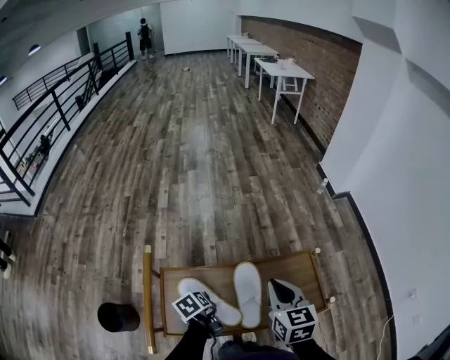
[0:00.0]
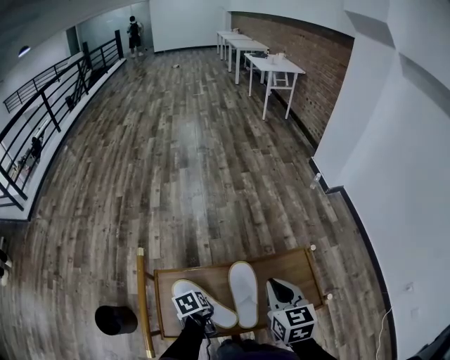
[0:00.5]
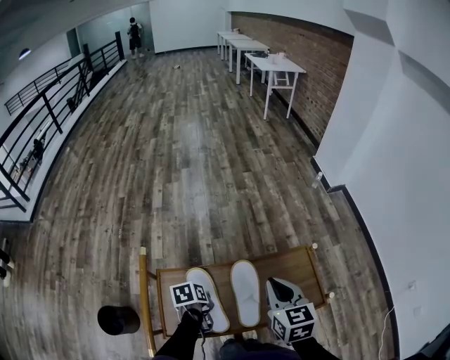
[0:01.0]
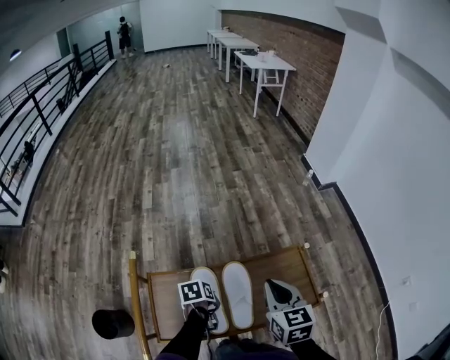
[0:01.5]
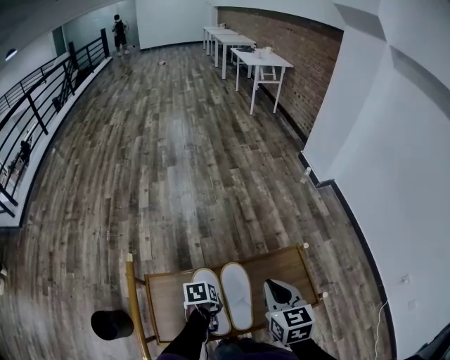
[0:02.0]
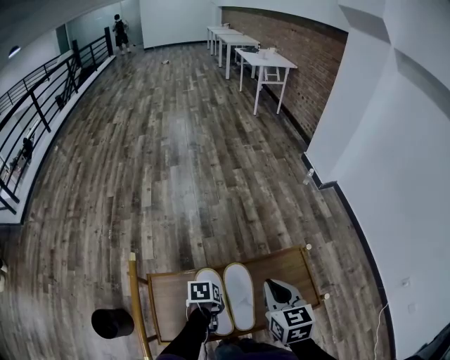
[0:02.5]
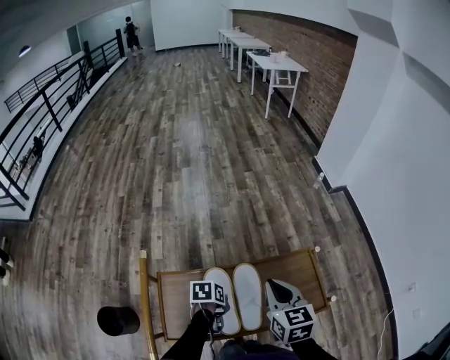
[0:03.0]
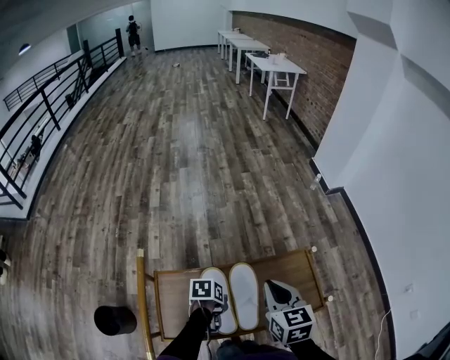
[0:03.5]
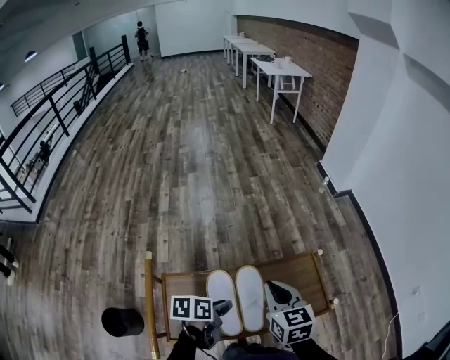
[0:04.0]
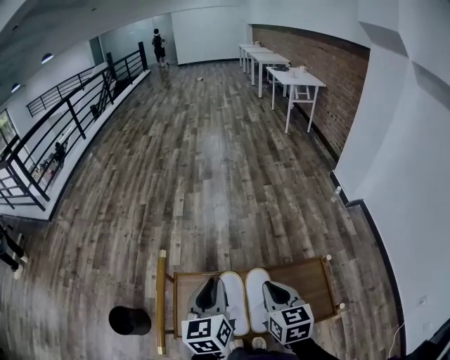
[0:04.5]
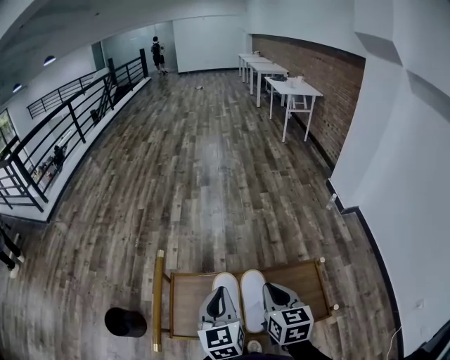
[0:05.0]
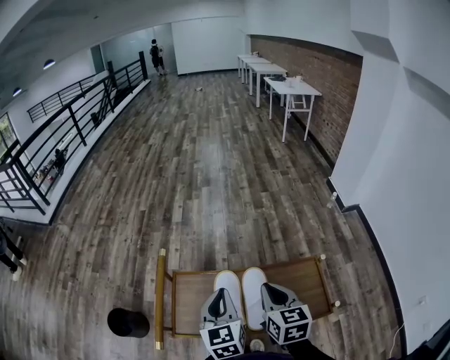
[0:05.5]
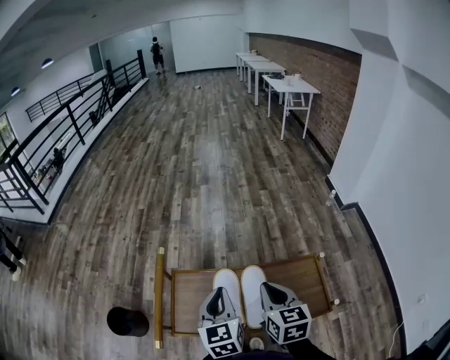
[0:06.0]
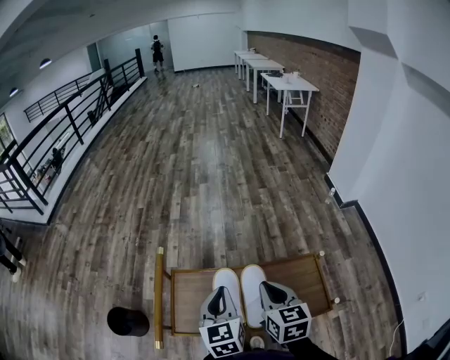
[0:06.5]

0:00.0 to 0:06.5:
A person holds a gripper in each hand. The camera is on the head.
0:00.0 to 0:02.0: The left gripper shifts by about 10 cm, rotates about 40 degrees, and closes.
0:02.0 to 0:04.5: The left gripper moves upward, roughly 25 cm, and tips its fingers upward by approximately 50 degrees. The right gripper shifts by about 5 cm.
0:04.5 to 0:06.5: The left gripper heads backward, covering approximately 5 cm.

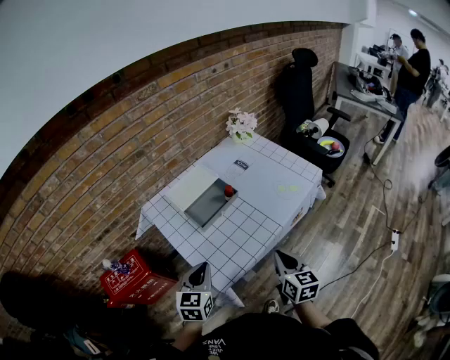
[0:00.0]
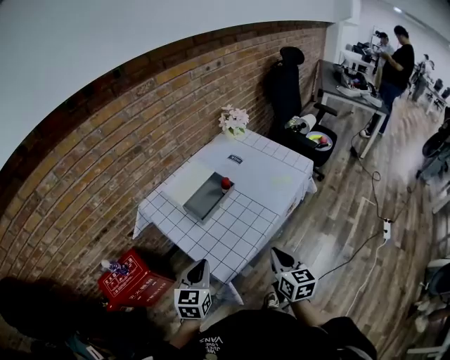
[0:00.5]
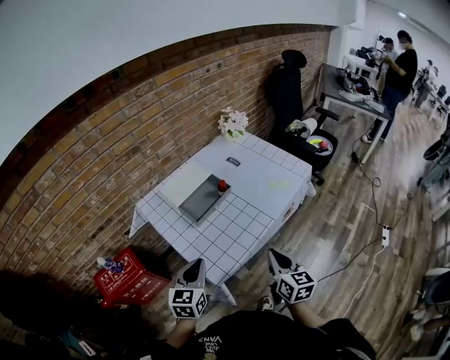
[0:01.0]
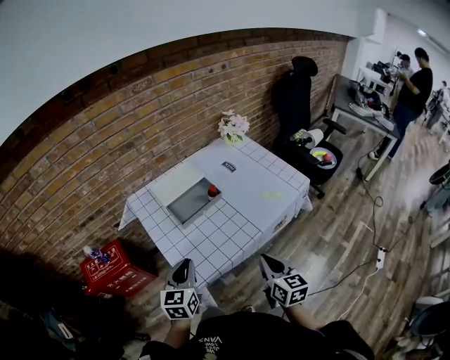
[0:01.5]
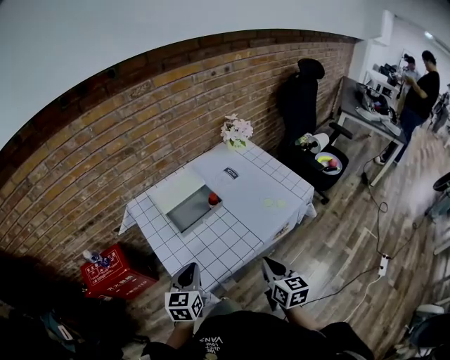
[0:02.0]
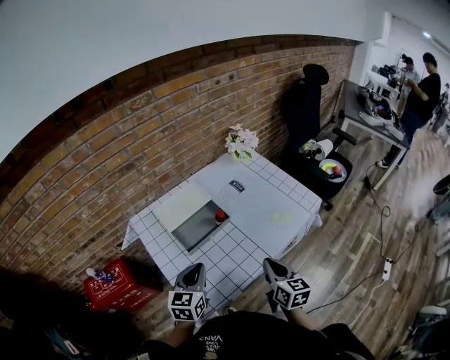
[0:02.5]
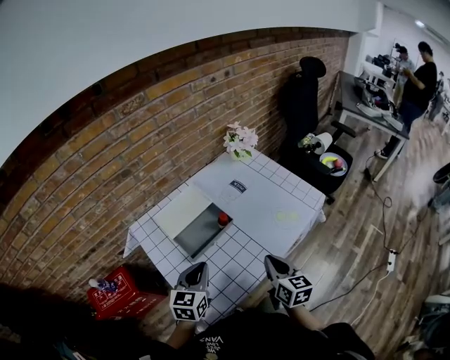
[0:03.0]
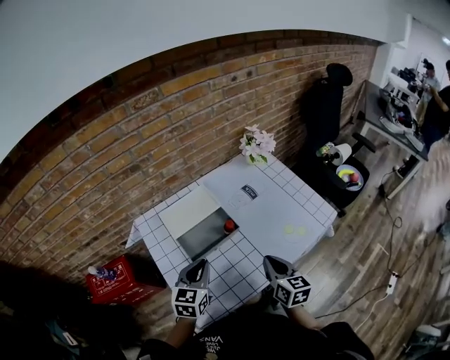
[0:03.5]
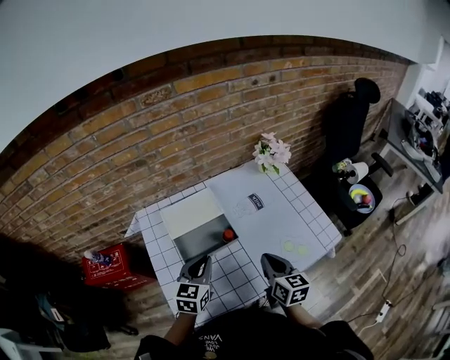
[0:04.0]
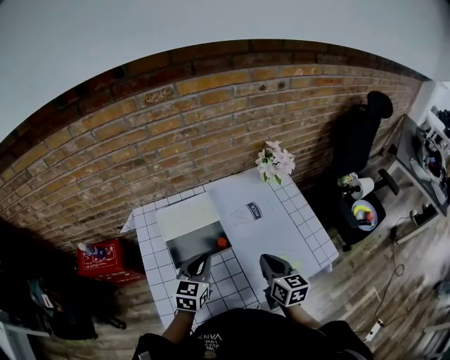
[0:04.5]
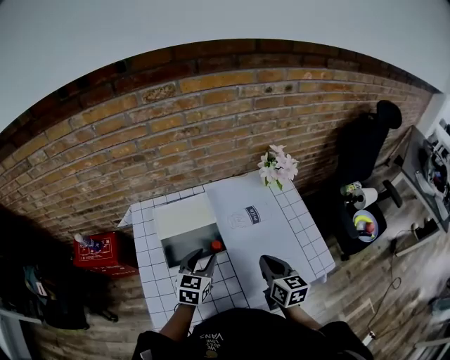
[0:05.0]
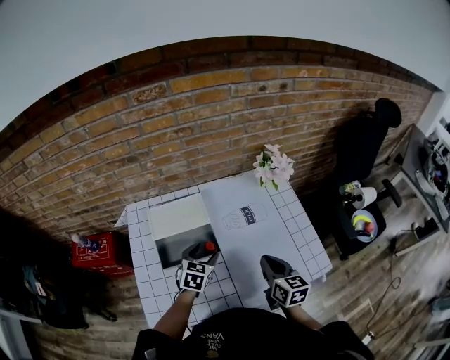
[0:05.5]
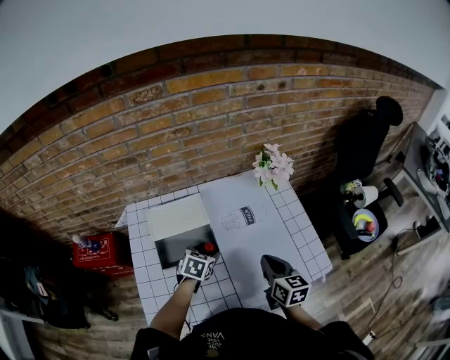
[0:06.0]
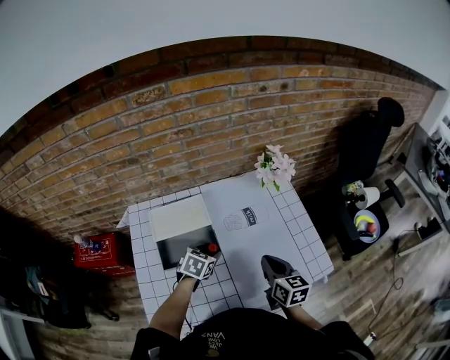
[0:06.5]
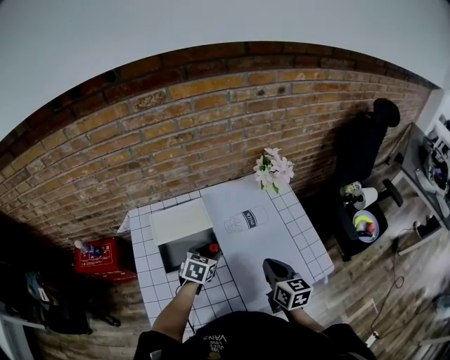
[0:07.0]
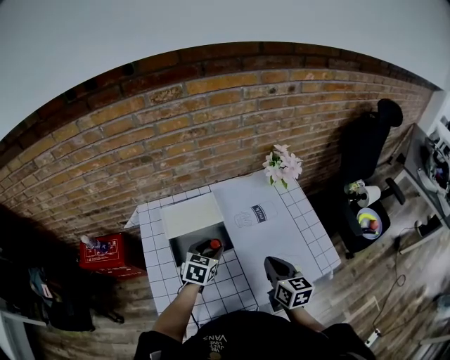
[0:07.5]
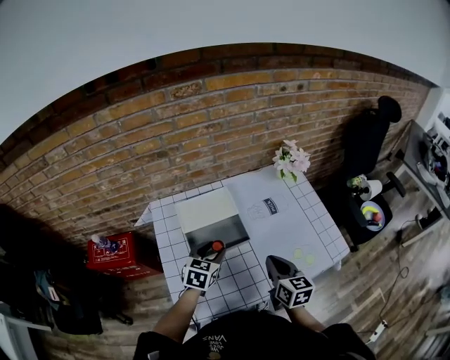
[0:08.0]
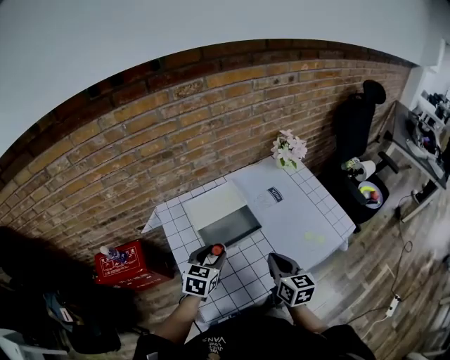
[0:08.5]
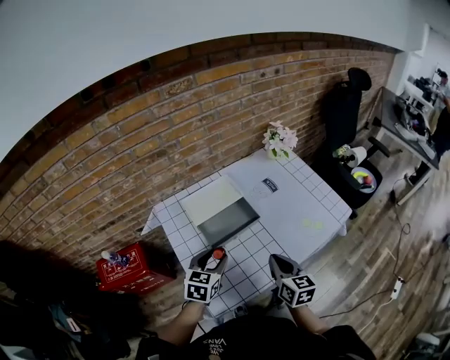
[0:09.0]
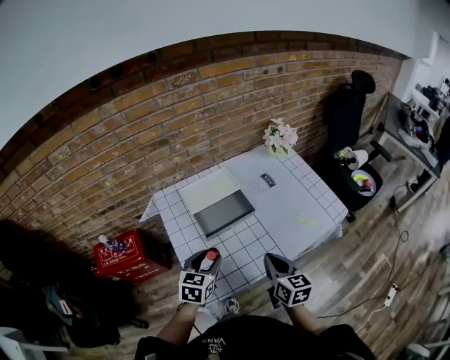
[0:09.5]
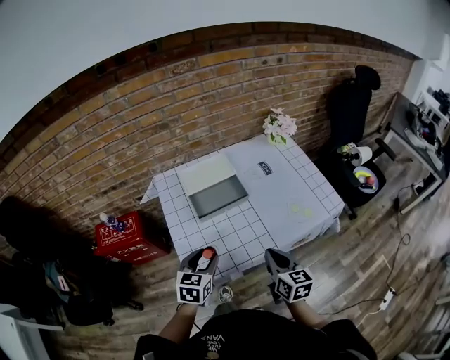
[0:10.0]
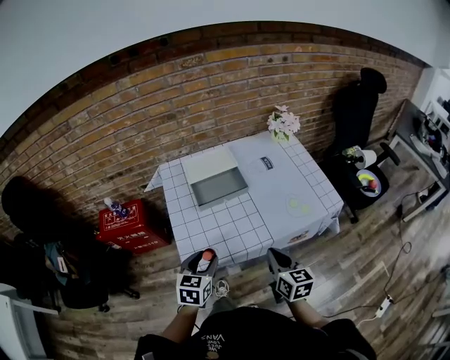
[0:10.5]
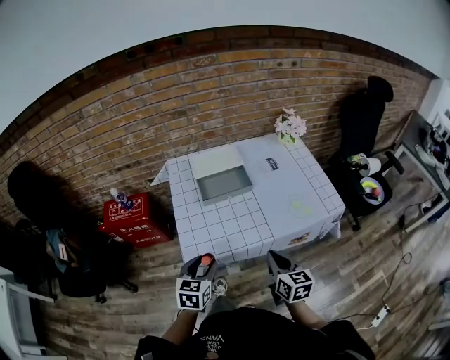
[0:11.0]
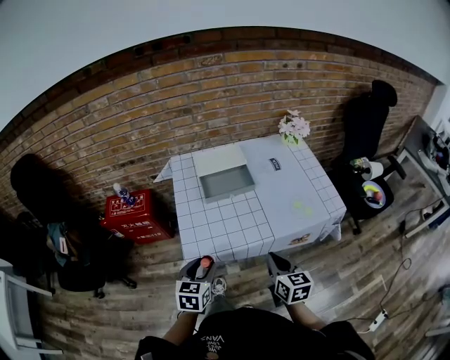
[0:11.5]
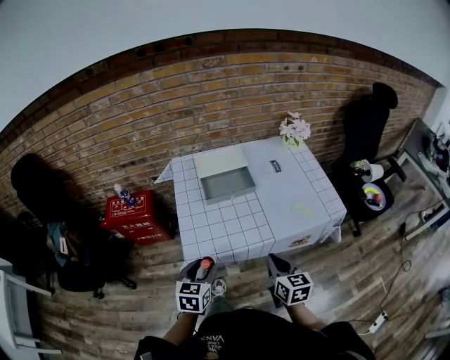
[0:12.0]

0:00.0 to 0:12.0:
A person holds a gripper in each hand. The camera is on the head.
0:00.0 to 0:02.0: The right gripper shifts by some 5 cm. The left gripper changes place by roughly 5 cm.
0:02.0 to 0:04.0: The two grippers go some 20 cm forward.
0:04.0 to 0:06.0: The left gripper is displaced downward, forward and to the right by approximately 20 cm, rotates about 30 degrees, and opens up. Meanwhile the right gripper heads to the right and forward, covering approximately 10 cm.
0:06.0 to 0:08.0: The left gripper travels to the left, upward and backward by about 15 cm, while the right gripper shifts some 10 cm to the left and backward.
0:08.0 to 0:10.0: Both grippers travel together backward, approximately 20 cm.
0:10.0 to 0:12.0: The right gripper heads backward, covering approximately 5 cm. Meanwhile the left gripper moves backward, roughly 10 cm.

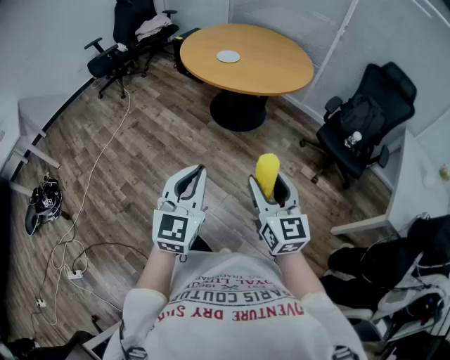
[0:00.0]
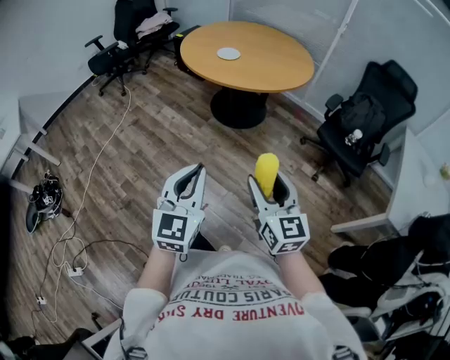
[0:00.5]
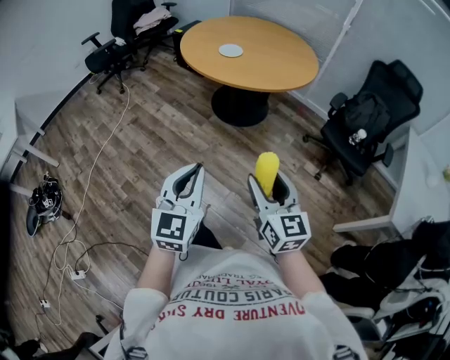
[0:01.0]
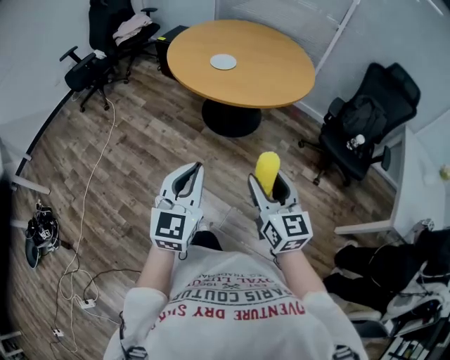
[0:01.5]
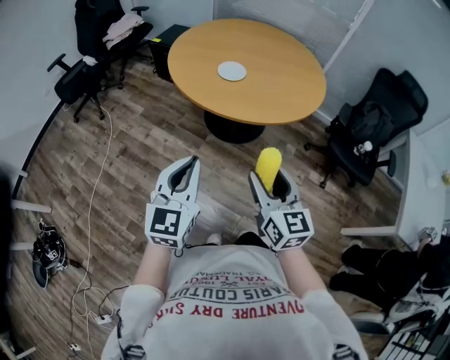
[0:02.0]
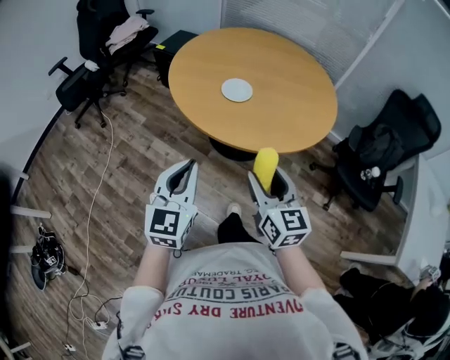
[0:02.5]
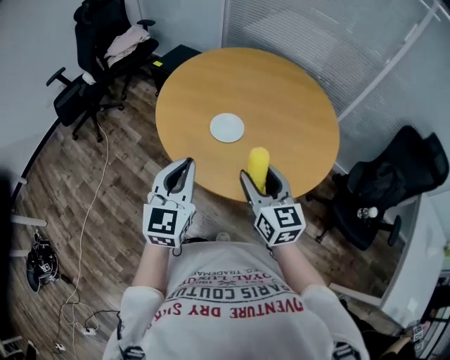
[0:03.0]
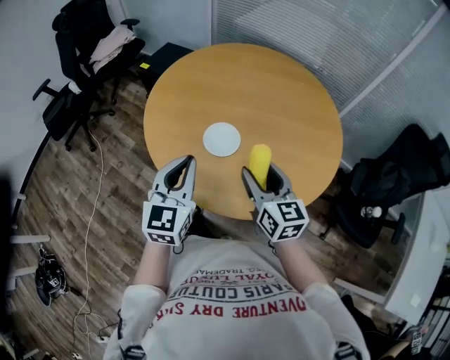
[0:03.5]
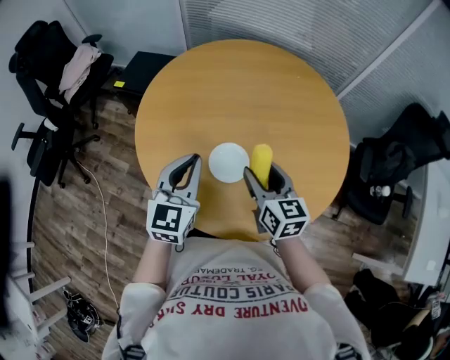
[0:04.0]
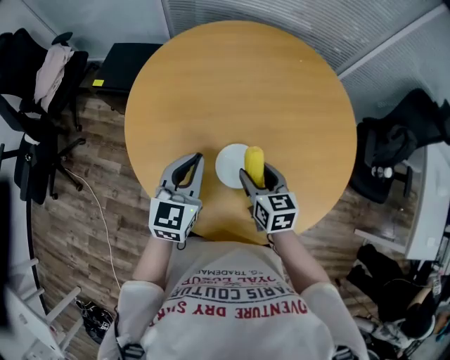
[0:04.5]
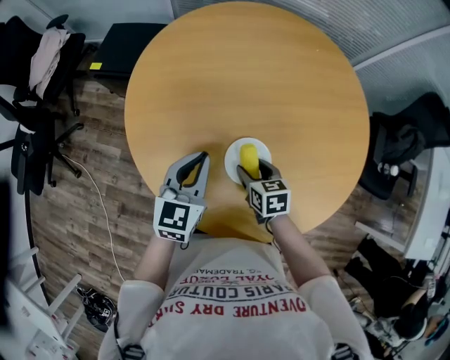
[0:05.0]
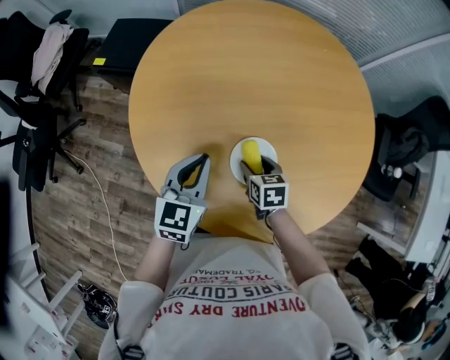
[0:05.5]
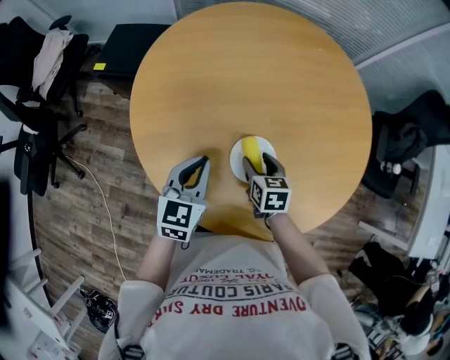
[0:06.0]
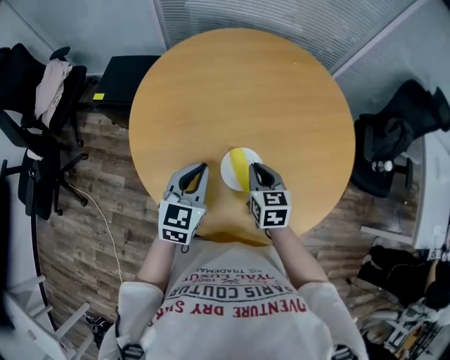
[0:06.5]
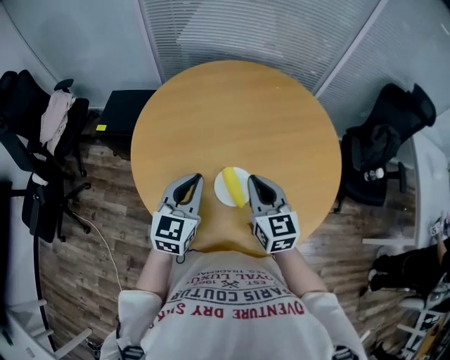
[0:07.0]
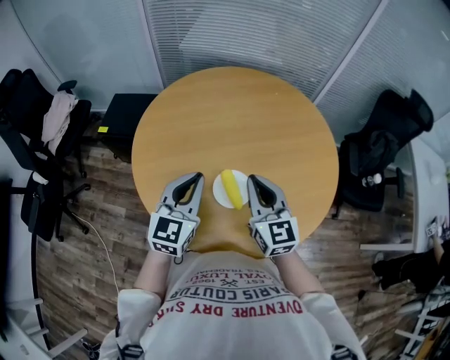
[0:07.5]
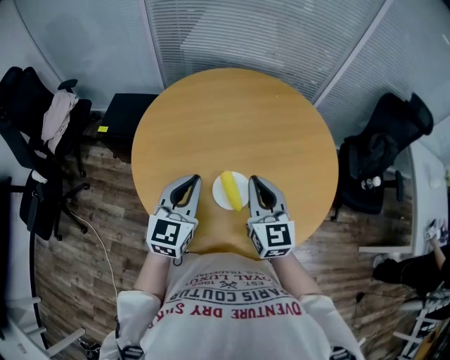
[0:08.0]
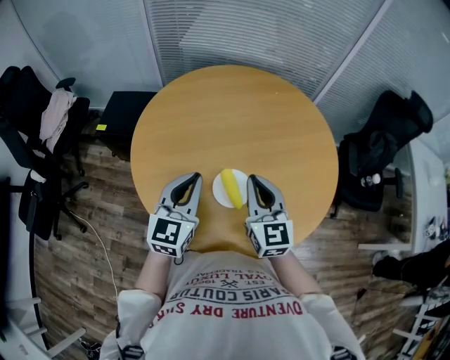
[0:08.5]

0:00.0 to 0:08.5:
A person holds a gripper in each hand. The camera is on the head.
0:00.0 to 0:02.0: Both grippers travel together forward and to the left, some 35 cm.
0:02.0 to 0:04.0: The pair of grippers is taken forward, about 60 cm.
0:04.0 to 0:06.5: The grippers both shift downward by roughly 10 cm. The right gripper swivels some 20 degrees, and closes up.
0:06.5 to 0:08.5: The right gripper travels upward by roughly 15 cm, and turns by roughly 30 degrees. Meanwhile the left gripper moves upward, roughly 10 cm.
